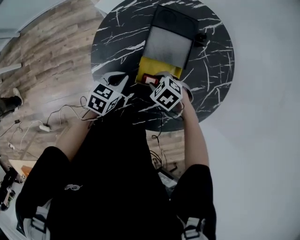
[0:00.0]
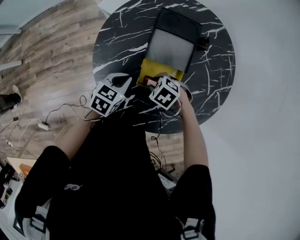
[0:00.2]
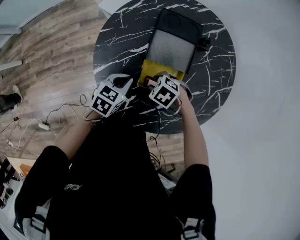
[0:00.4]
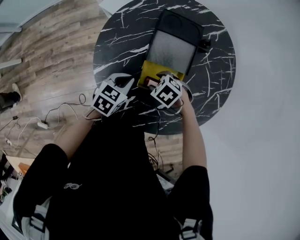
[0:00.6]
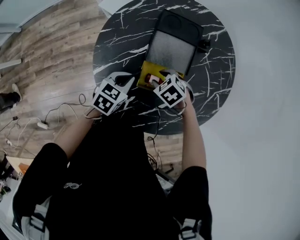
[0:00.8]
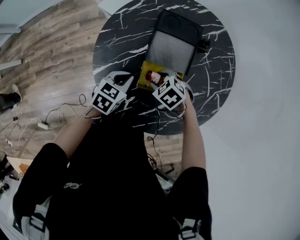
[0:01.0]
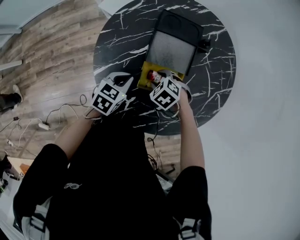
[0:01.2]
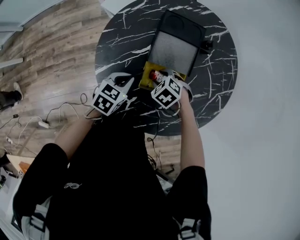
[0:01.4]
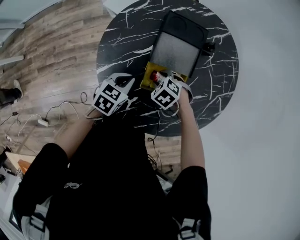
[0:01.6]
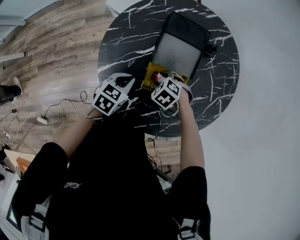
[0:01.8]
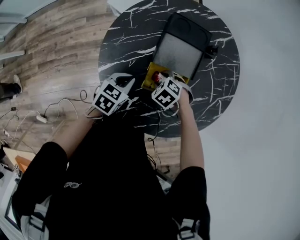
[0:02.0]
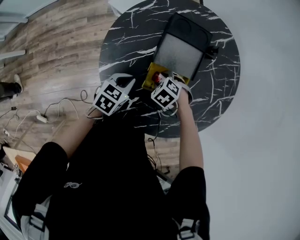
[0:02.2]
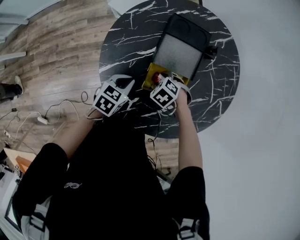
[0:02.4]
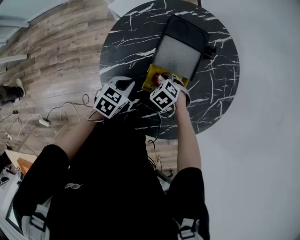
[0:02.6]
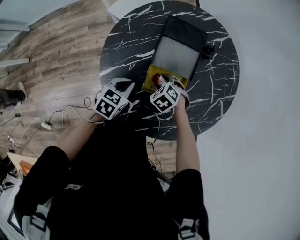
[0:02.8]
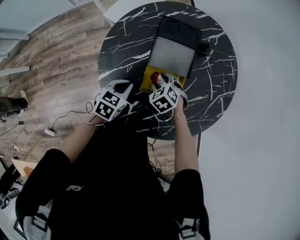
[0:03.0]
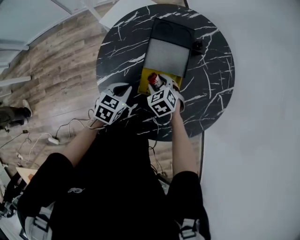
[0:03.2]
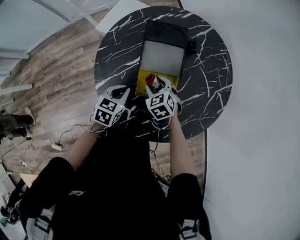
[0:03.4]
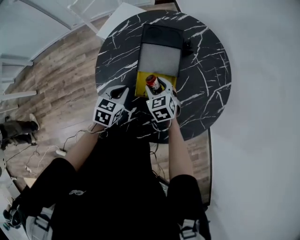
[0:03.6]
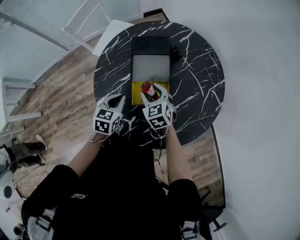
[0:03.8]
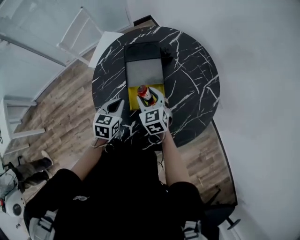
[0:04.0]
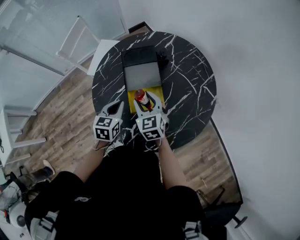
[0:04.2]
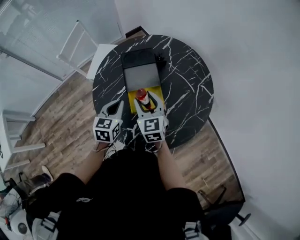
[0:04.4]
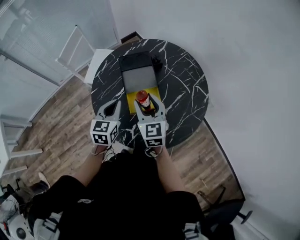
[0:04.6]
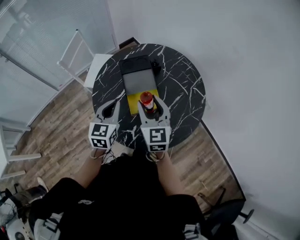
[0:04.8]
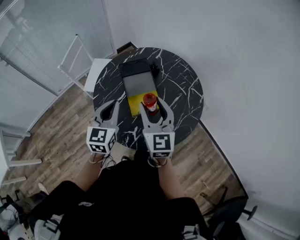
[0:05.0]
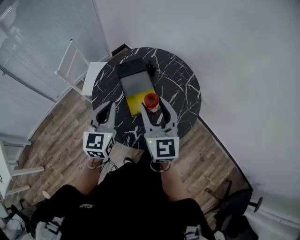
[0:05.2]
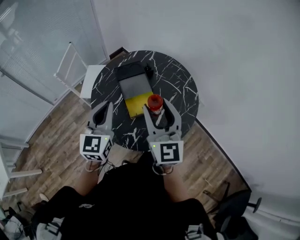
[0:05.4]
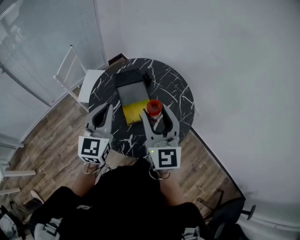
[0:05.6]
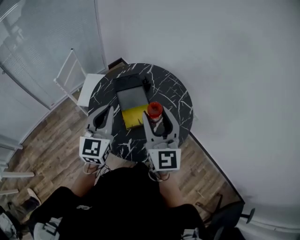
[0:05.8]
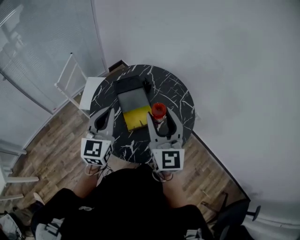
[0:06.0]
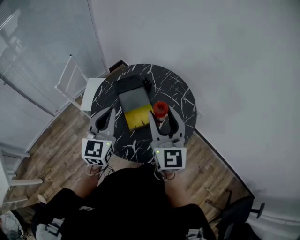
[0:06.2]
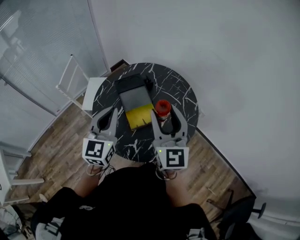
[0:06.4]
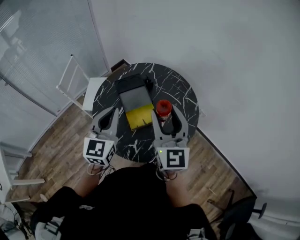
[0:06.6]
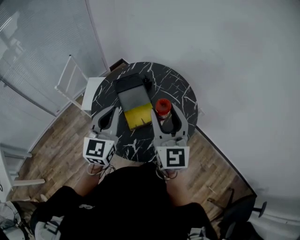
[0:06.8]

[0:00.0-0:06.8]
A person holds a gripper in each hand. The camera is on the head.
0:00.0 to 0:02.8: The grippers stay close to where they were, moving slightly.
0:02.8 to 0:04.0: The right gripper is displaced upward by approximately 15 cm, and angles its fingers upward, by about 40 degrees, while the left gripper moves upward, some 5 cm.
0:04.0 to 0:05.4: The right gripper moves upward and backward, roughly 35 cm, and angles its fingers upward, by roughly 40 degrees; the left gripper travels upward by roughly 25 cm, and tips its fingers upward by about 30 degrees.
0:05.4 to 0:06.8: The right gripper ends up roughly 5 cm from where it was; the left gripper moves about 5 cm.

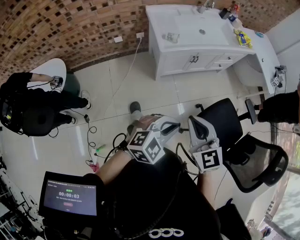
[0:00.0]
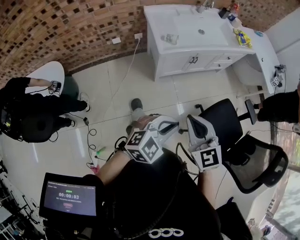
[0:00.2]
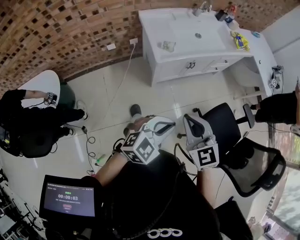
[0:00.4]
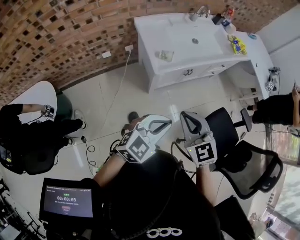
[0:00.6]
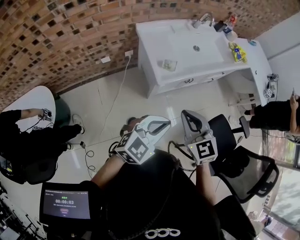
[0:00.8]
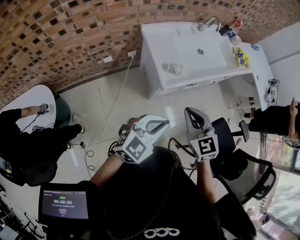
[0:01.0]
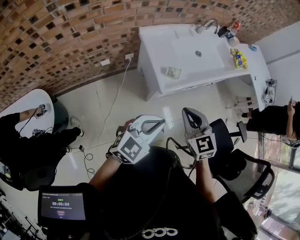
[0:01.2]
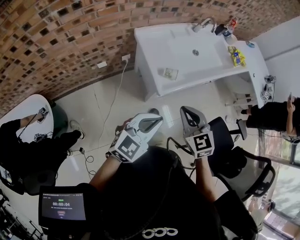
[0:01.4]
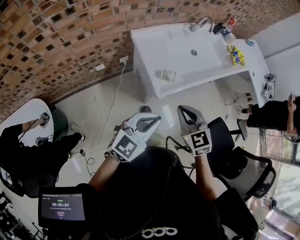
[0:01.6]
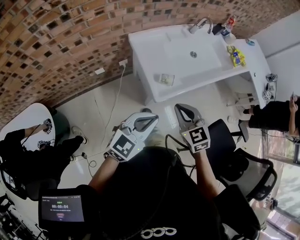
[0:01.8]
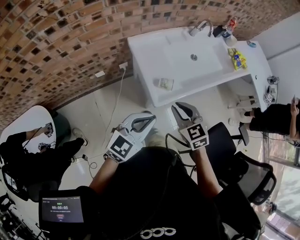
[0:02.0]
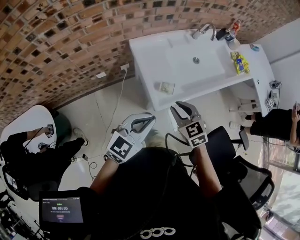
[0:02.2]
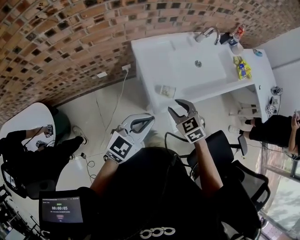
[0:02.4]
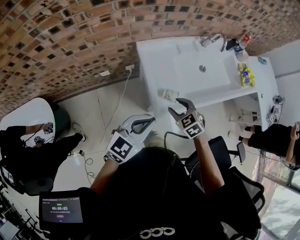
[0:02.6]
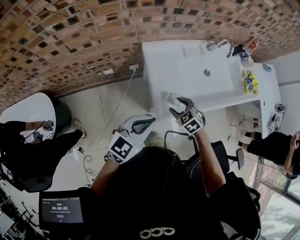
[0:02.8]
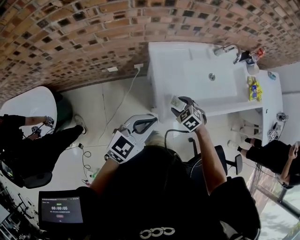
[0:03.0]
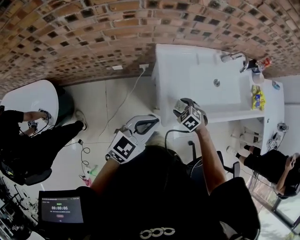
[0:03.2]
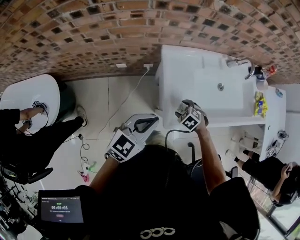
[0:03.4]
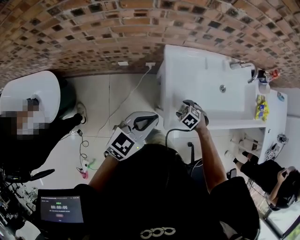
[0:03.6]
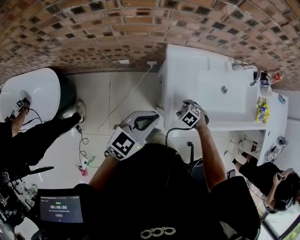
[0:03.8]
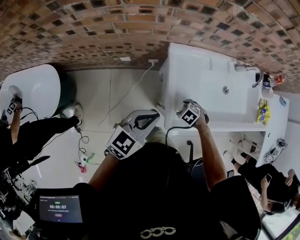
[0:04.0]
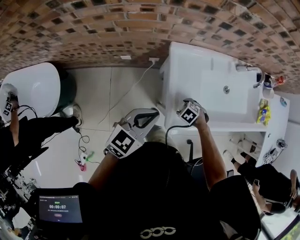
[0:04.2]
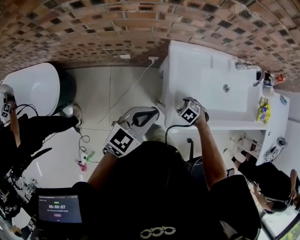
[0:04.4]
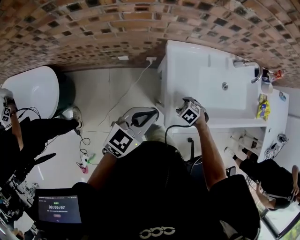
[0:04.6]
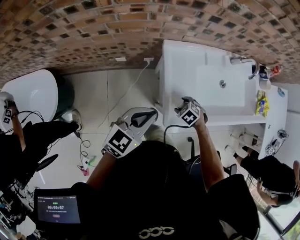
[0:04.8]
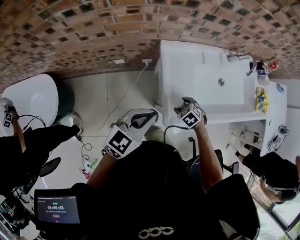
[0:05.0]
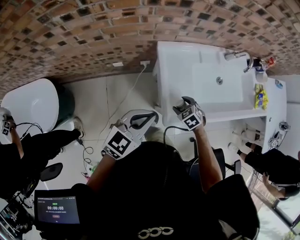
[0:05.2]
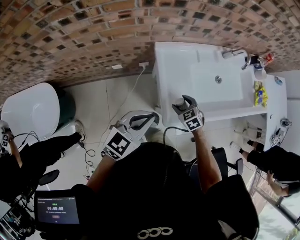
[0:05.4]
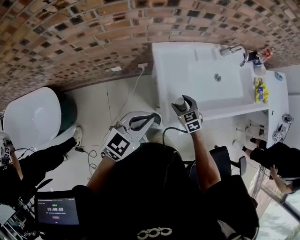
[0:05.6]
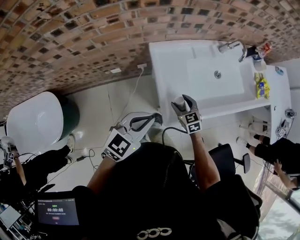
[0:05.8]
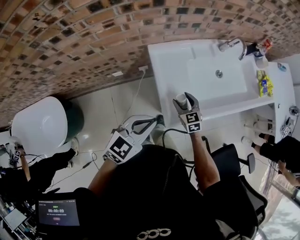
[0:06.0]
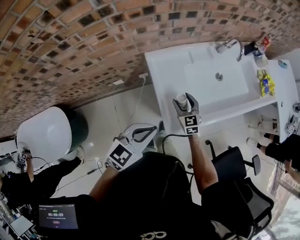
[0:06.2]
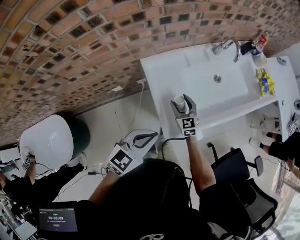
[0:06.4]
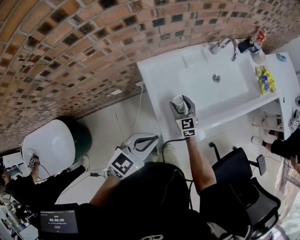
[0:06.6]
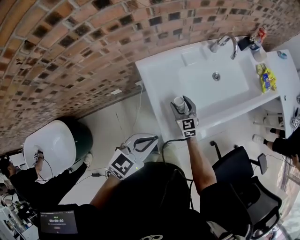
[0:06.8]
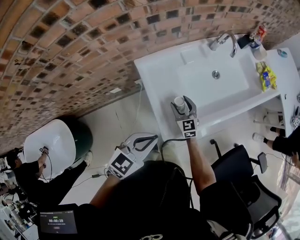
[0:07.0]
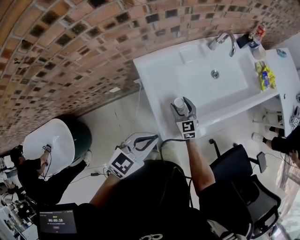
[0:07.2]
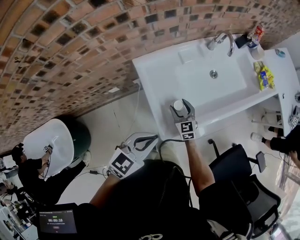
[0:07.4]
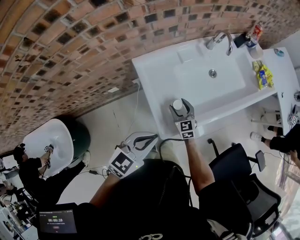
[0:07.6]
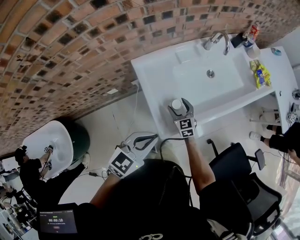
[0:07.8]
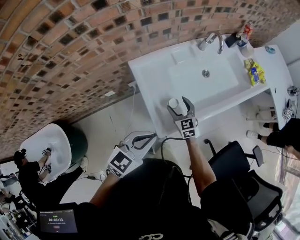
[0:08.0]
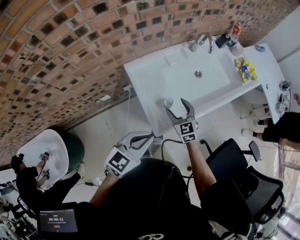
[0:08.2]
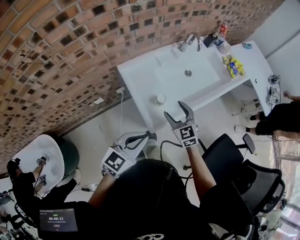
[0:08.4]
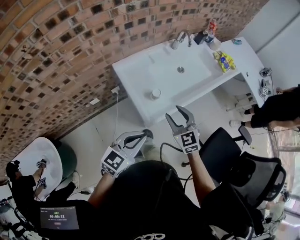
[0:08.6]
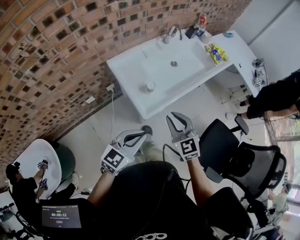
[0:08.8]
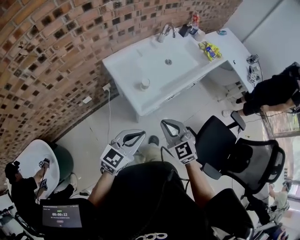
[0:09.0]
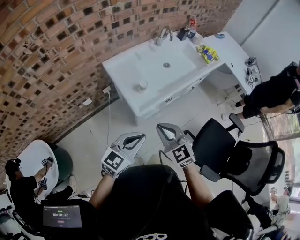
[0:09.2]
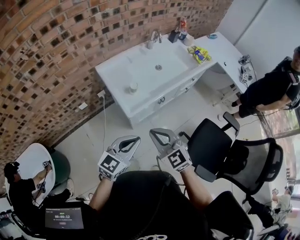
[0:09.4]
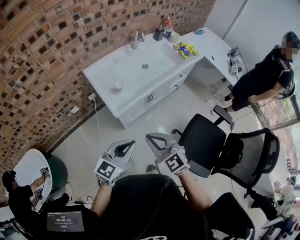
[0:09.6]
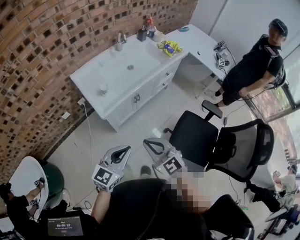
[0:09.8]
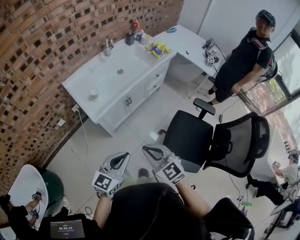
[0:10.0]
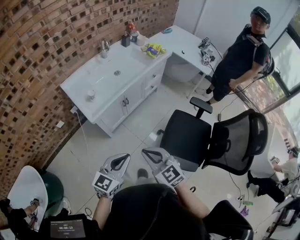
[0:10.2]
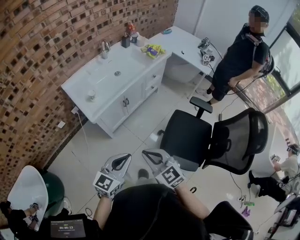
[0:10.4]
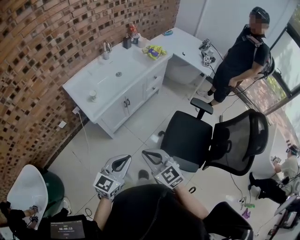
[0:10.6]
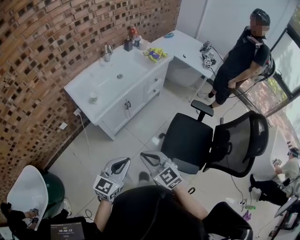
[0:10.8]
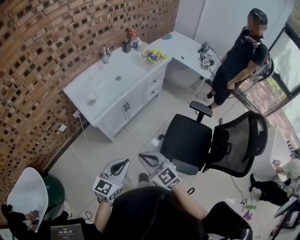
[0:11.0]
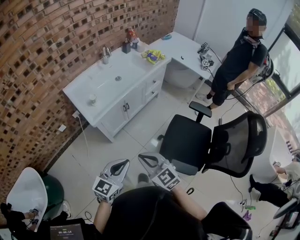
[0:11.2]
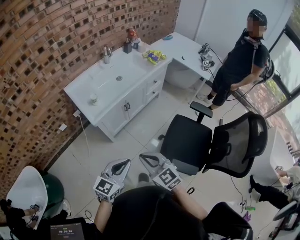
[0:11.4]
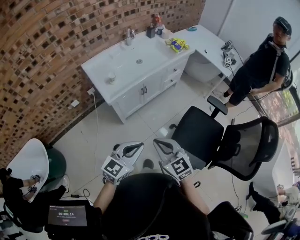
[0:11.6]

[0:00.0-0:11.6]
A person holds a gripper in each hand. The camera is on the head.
0:00.0 to 0:01.4: Both grippers move forward and to the left, some 35 cm. The left gripper swivels some 20 degrees.
0:01.4 to 0:02.8: The right gripper shifts approximately 25 cm forward and downward, rotates approximately 40 degrees, and opens its fingers; the left gripper goes about 15 cm forward.
0:02.8 to 0:04.4: The left gripper changes place by roughly 10 cm, while the right gripper moves downward, about 15 cm, and changes its angle by some 30 degrees.
0:04.4 to 0:05.8: The right gripper shifts roughly 10 cm upward, and angles its fingers upward, by some 40 degrees, while the left gripper ends up approximately 5 cm from where it was.
0:05.8 to 0:07.2: The right gripper shifts about 5 cm forward, and swivels approximately 20 degrees, while the left gripper goes approximately 5 cm to the right.
0:07.2 to 0:08.8: The left gripper goes some 15 cm backward. The right gripper shifts about 35 cm backward, upward and to the right, and closes up.
0:08.8 to 0:10.2: The left gripper goes about 30 cm to the right and backward; the right gripper shifts roughly 35 cm backward and to the right.
0:10.2 to 0:11.6: The grippers move only a little.

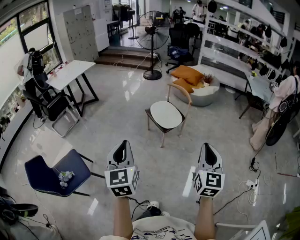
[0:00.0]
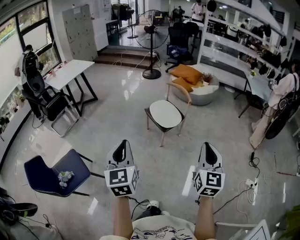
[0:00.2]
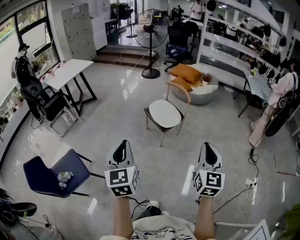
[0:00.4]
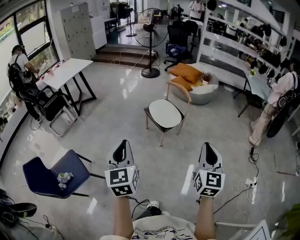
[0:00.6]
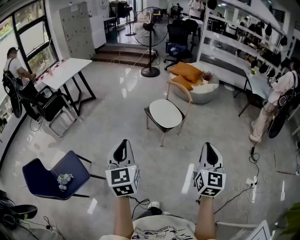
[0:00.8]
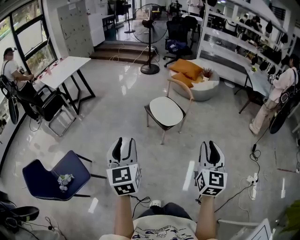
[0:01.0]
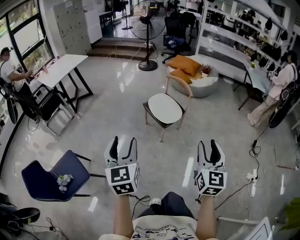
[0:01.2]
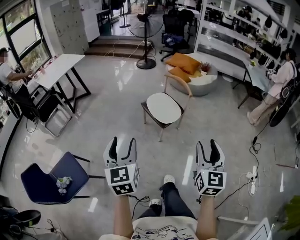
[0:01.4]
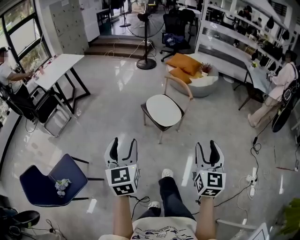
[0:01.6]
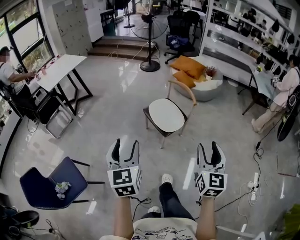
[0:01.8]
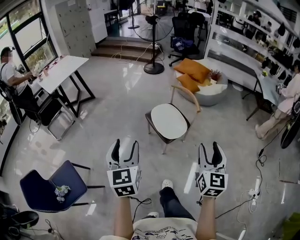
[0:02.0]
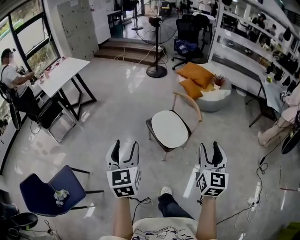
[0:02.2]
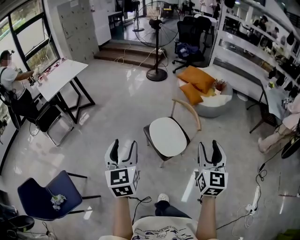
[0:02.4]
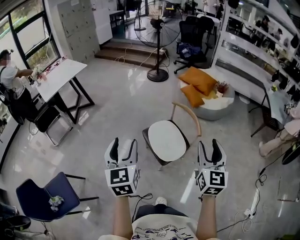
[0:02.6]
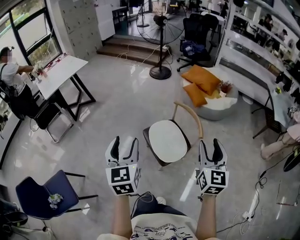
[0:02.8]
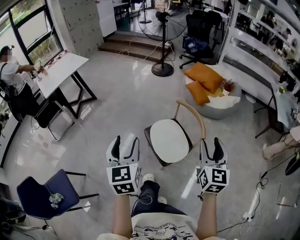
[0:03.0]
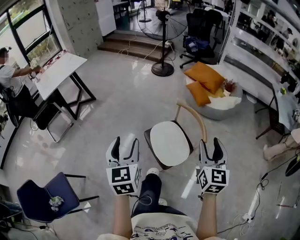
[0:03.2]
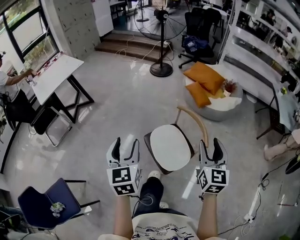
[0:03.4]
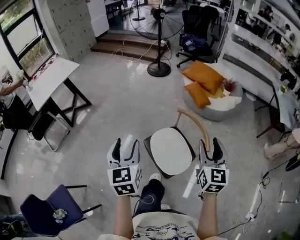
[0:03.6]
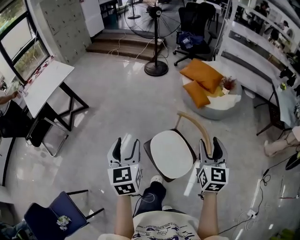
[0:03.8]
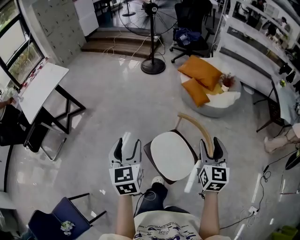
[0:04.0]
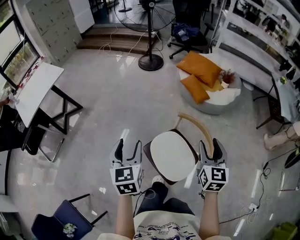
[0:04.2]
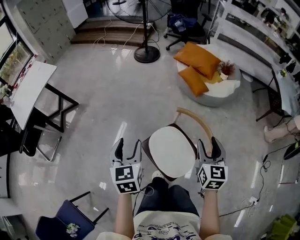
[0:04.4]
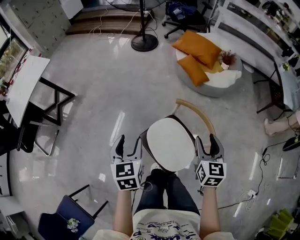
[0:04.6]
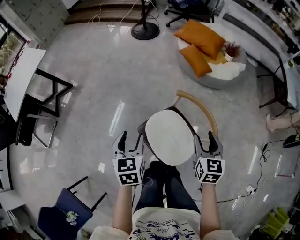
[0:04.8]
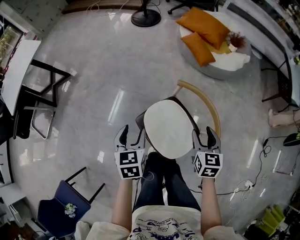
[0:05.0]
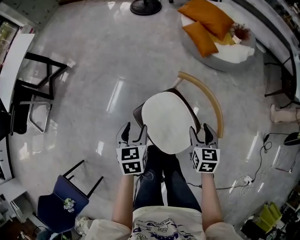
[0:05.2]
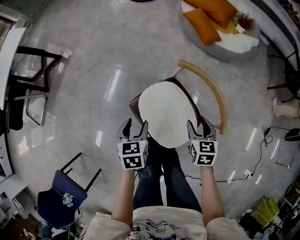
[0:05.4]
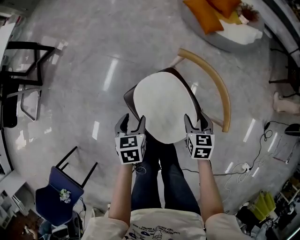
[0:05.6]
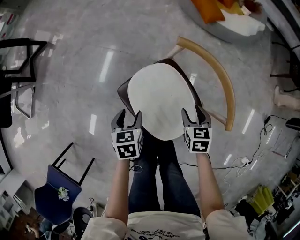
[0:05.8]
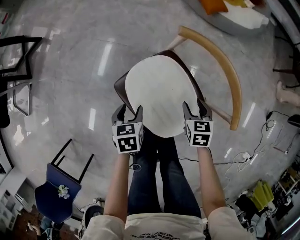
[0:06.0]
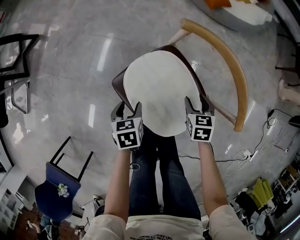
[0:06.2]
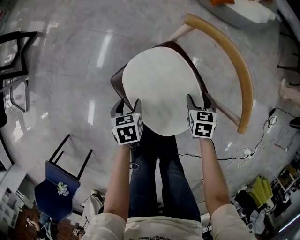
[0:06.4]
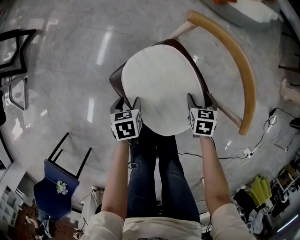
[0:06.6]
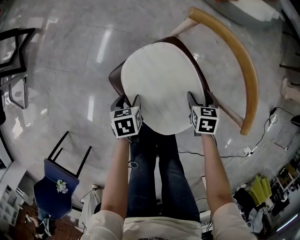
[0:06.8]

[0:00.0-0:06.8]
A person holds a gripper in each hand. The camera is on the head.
0:00.0 to 0:01.4: The grippers both shift forward by about 10 cm. The right gripper opens up; the left gripper opens its fingers.
0:01.4 to 0:02.8: Both grippers are carried forward, approximately 50 cm.
0:02.8 to 0:04.0: The two grippers go roughly 30 cm forward.
0:04.0 to 0:05.4: The grippers both shift downward by roughly 40 cm. The right gripper angles its fingers downward, by approximately 30 degrees, while the left gripper turns by some 30 degrees.
0:05.4 to 0:06.8: The two grippers go about 30 cm downward. The left gripper rotates some 20 degrees.
